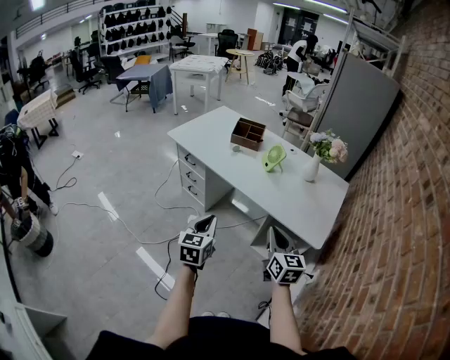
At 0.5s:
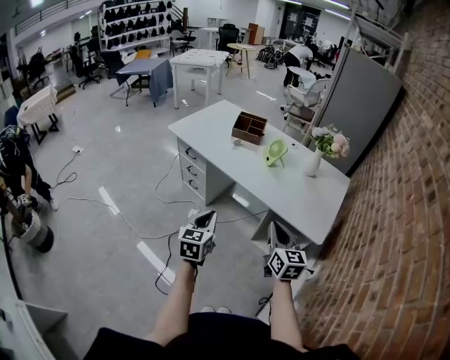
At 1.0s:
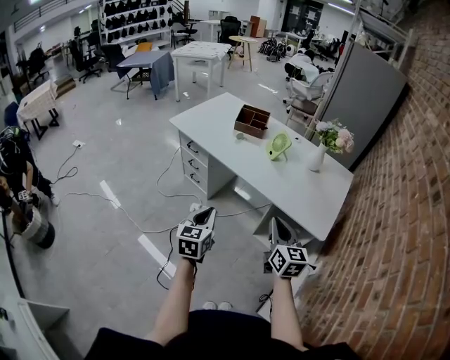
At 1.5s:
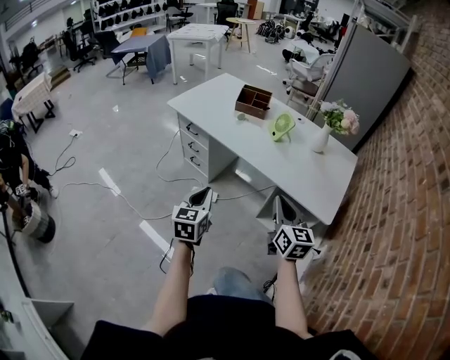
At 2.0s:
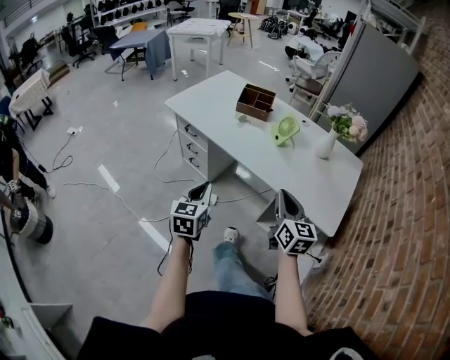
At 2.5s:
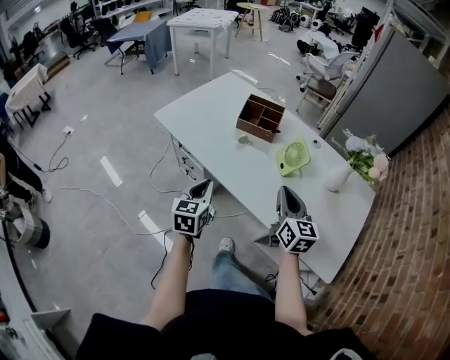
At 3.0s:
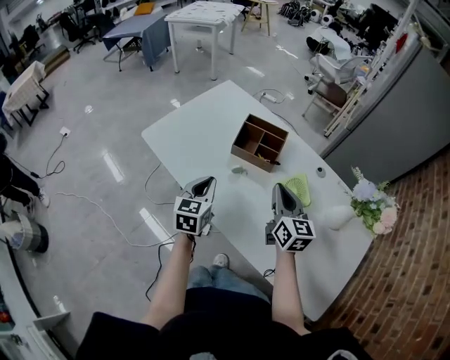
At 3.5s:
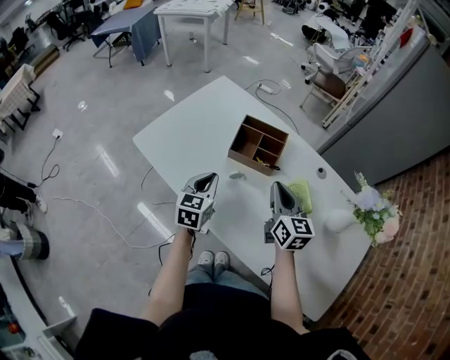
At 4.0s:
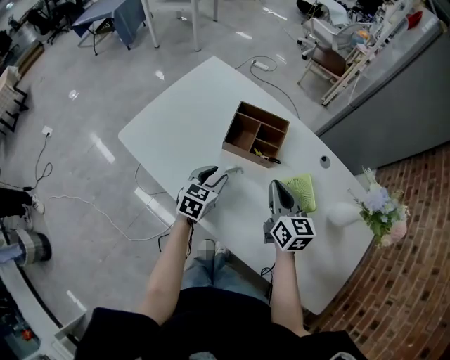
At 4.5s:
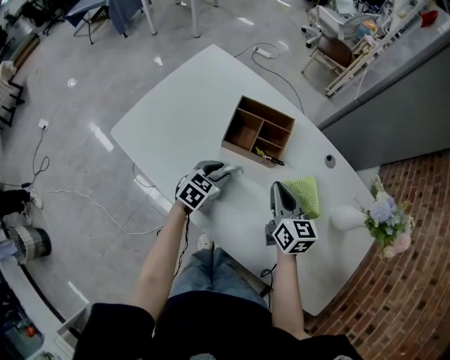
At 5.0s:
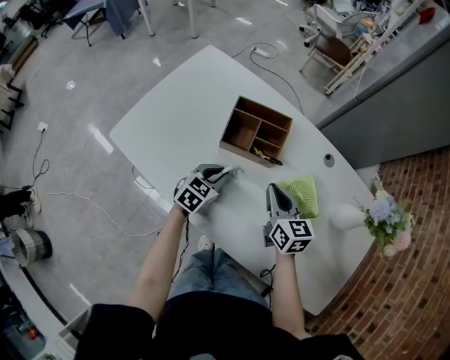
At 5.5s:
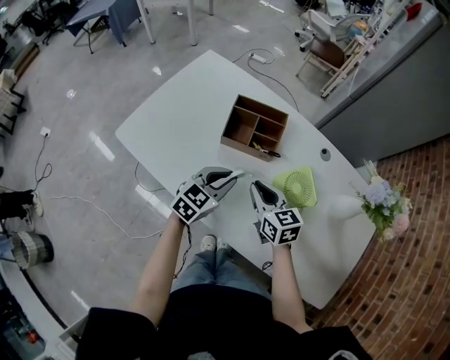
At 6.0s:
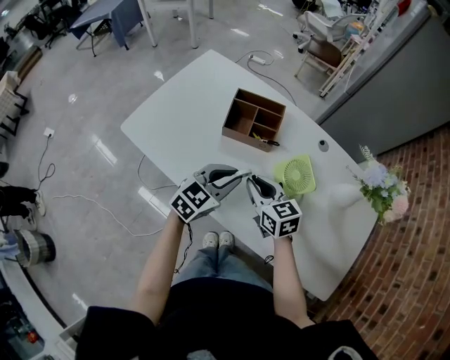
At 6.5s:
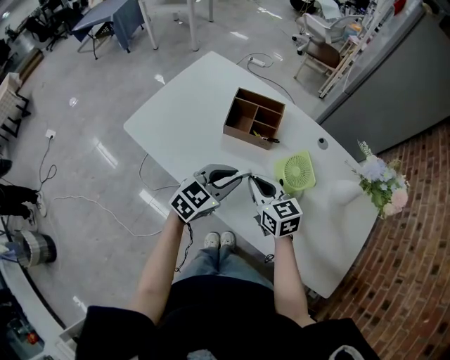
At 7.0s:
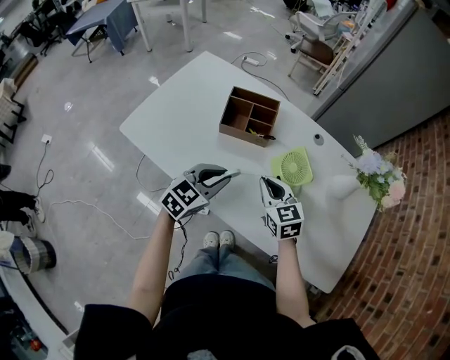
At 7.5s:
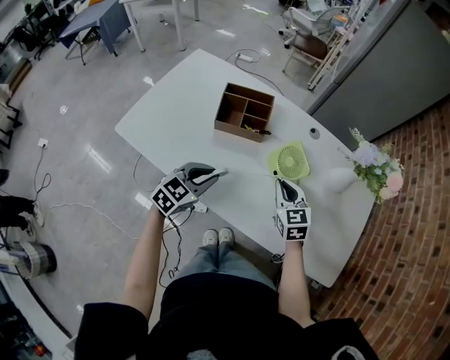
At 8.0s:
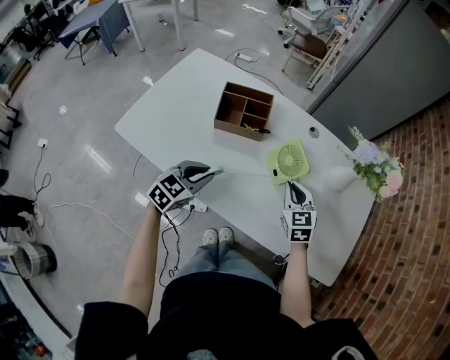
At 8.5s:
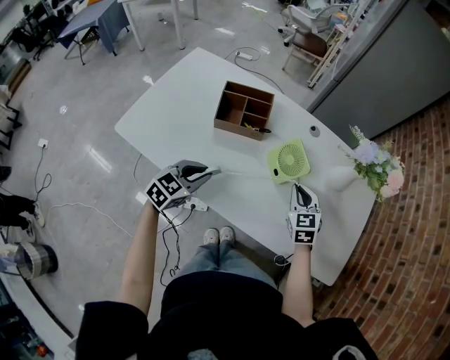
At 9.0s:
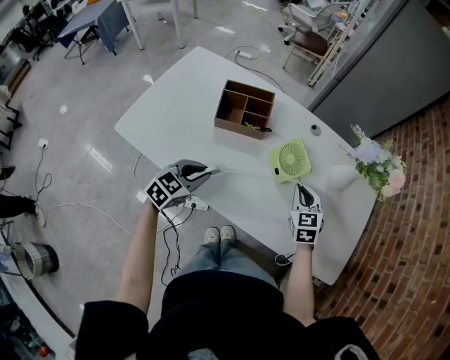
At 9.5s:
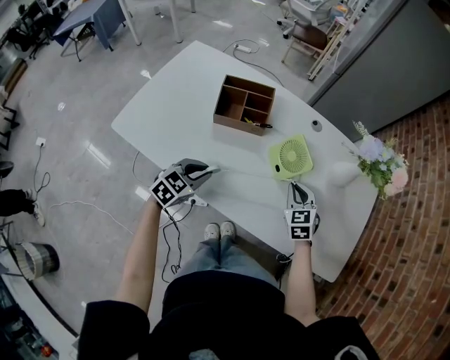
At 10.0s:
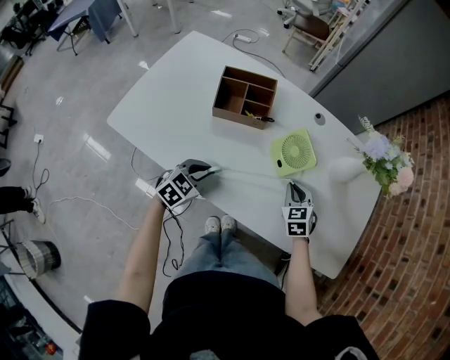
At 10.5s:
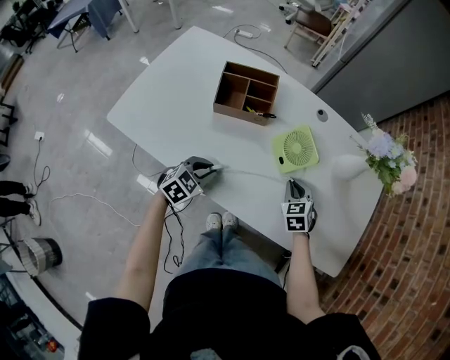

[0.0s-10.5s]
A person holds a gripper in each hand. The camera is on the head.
0.0s to 2.0s: The left gripper heads forward and to the left, covering roughly 10 cm. Meanwhile the right gripper shifts about 10 cm forward.
2.0s to 4.0s: The pair of grippers is taken forward, approximately 50 cm. The left gripper rotates some 20 degrees, and opens up.
4.0s to 6.5s: The right gripper moves backward and to the left, roughly 10 cm. The left gripper is displaced upward, backward and to the right by roughly 15 cm, and changes its angle by about 30 degrees.
6.5s to 8.5s: The right gripper shifts about 20 cm to the right, and turns by some 40 degrees; the left gripper heads to the left and downward, covering about 10 cm.
8.5s to 10.5s: The grippers both shift downward by about 10 cm.

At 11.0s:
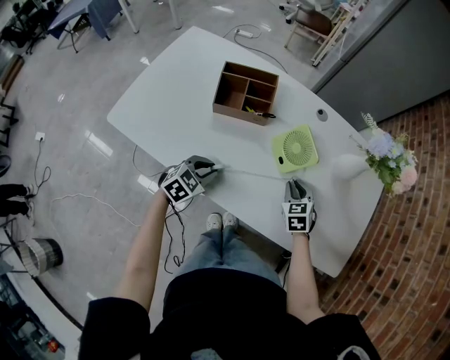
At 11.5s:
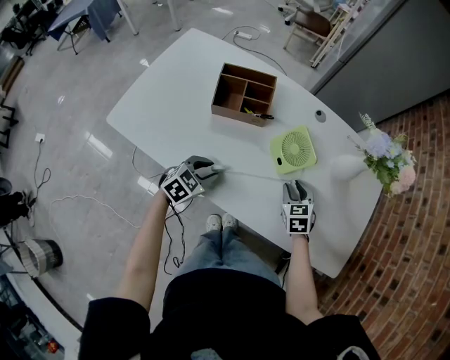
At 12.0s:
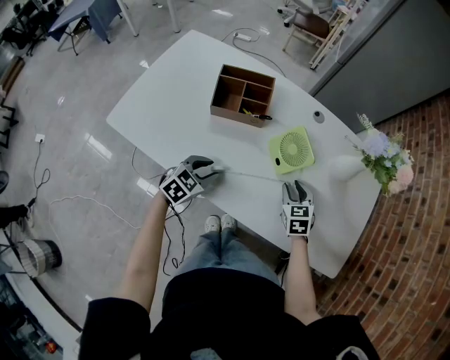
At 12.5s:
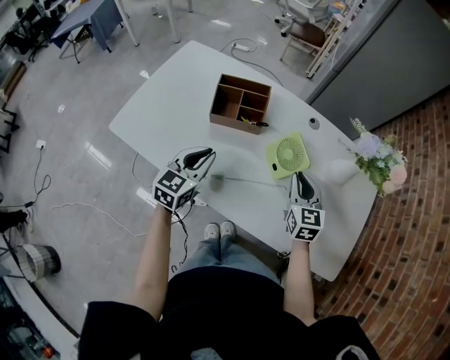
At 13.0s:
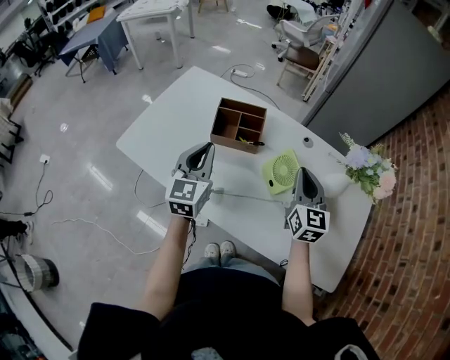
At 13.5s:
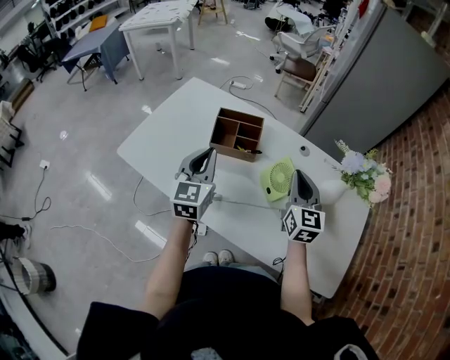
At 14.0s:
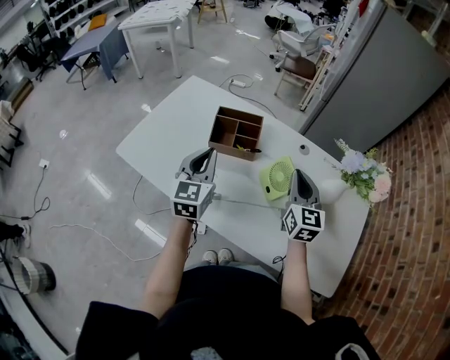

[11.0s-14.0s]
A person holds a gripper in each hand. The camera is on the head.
11.0s to 12.5s: Both grippers move upward, roughly 15 cm. The left gripper turns by some 30 degrees. Meanwhile the right gripper swivels about 30 degrees.
12.5s to 14.0s: The grippers both shift upward by roughly 10 cm. The left gripper rotates approximately 20 degrees.

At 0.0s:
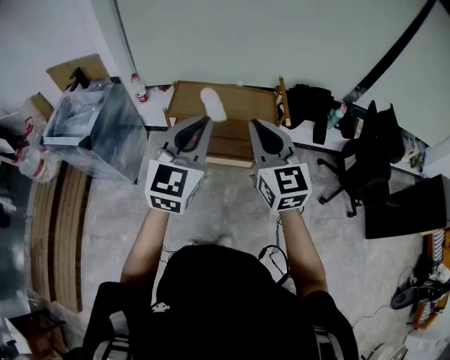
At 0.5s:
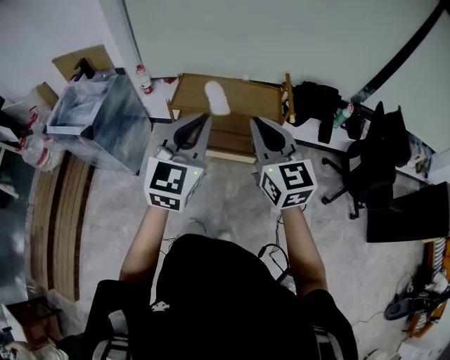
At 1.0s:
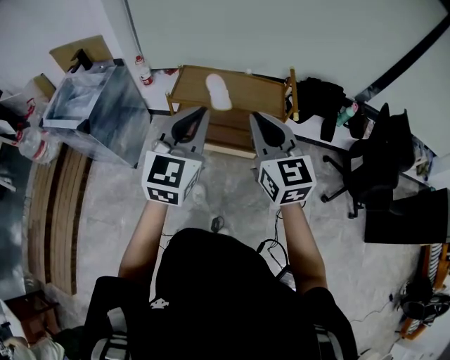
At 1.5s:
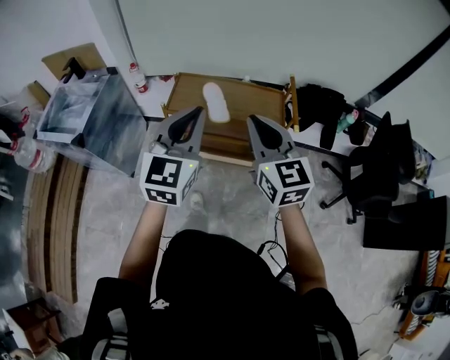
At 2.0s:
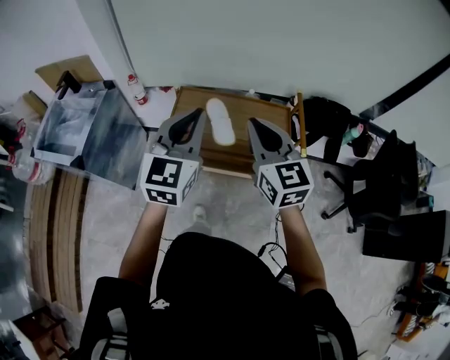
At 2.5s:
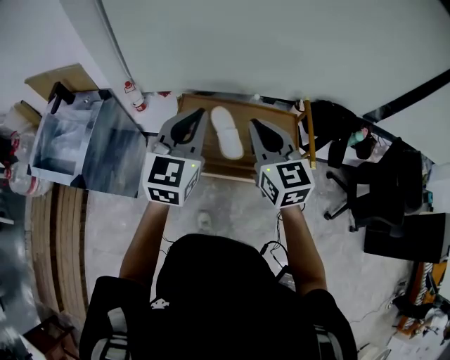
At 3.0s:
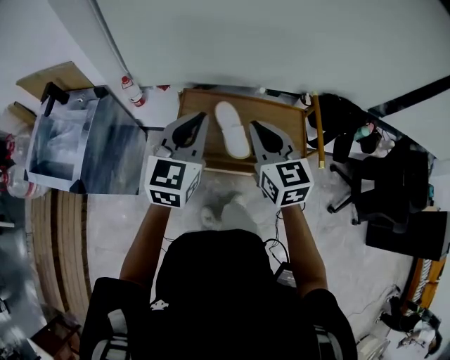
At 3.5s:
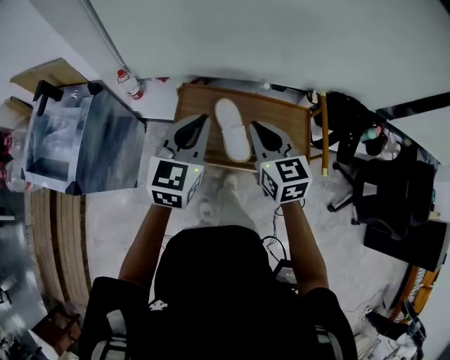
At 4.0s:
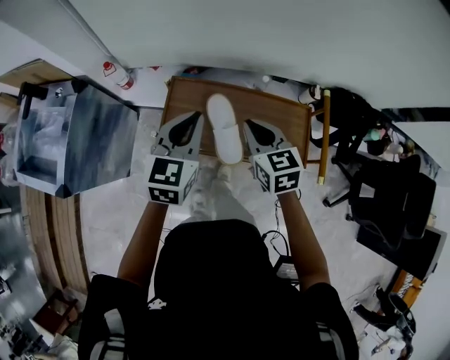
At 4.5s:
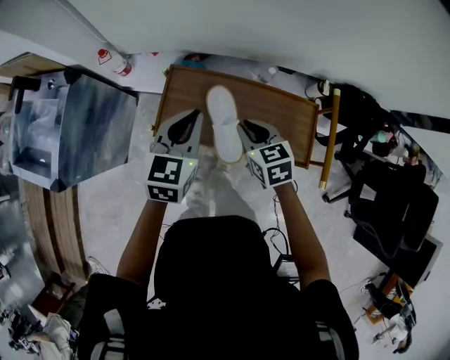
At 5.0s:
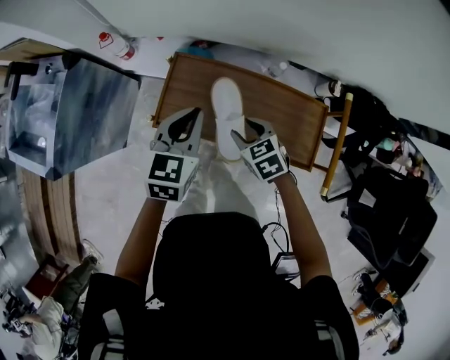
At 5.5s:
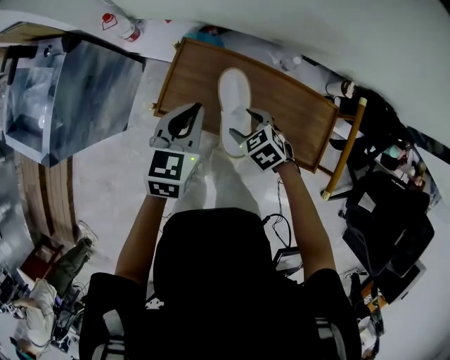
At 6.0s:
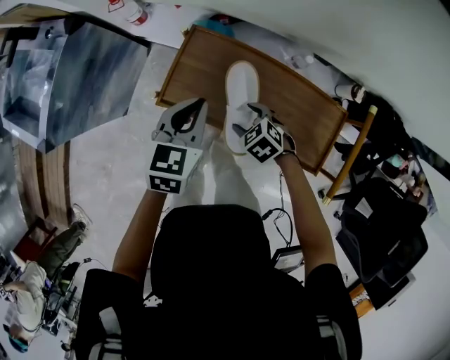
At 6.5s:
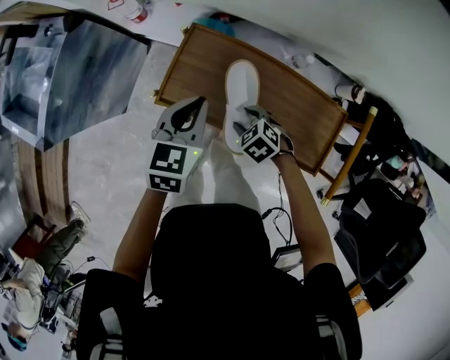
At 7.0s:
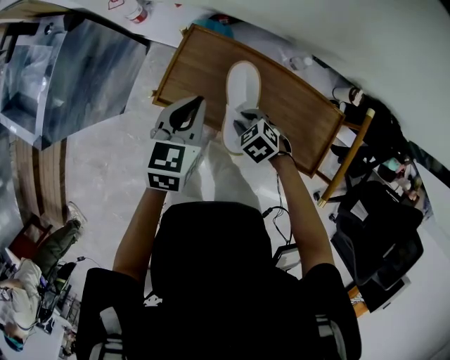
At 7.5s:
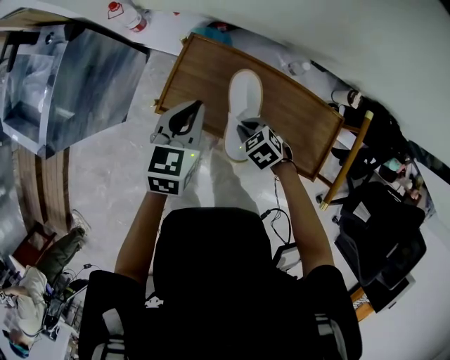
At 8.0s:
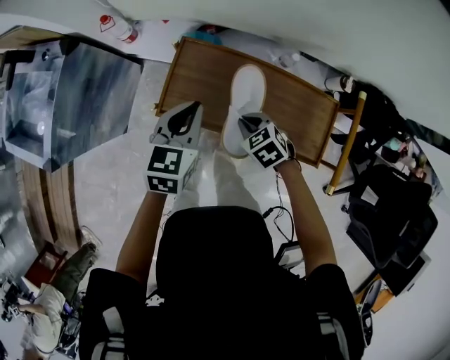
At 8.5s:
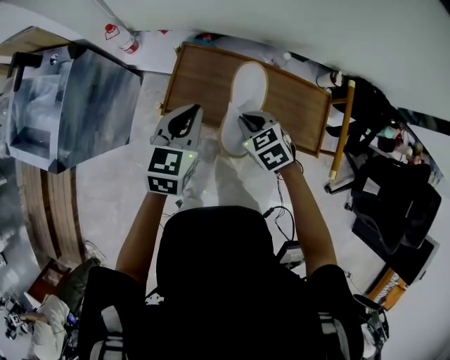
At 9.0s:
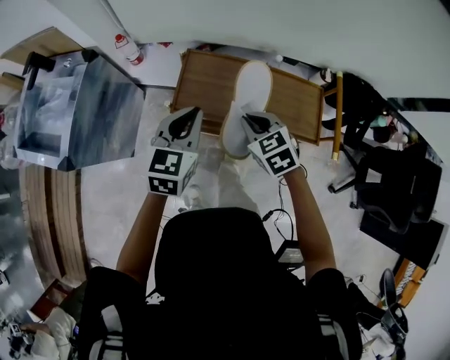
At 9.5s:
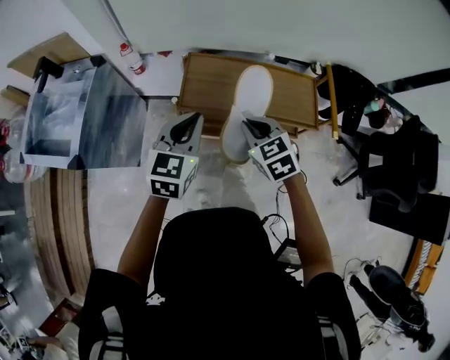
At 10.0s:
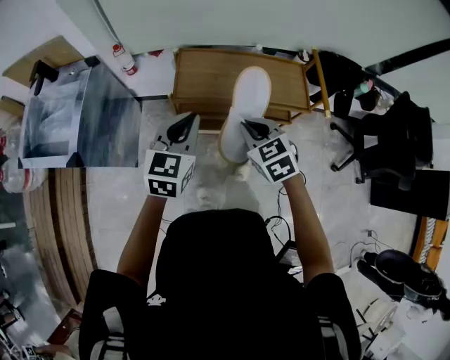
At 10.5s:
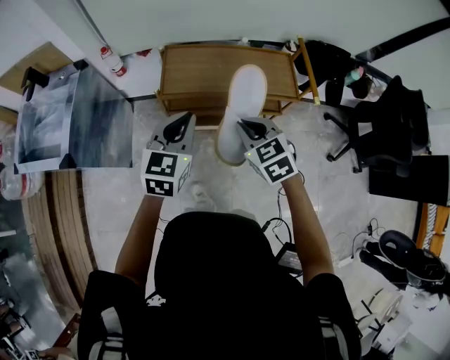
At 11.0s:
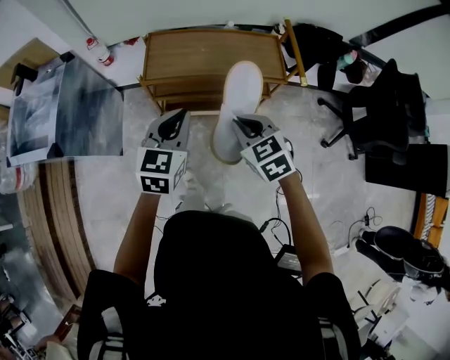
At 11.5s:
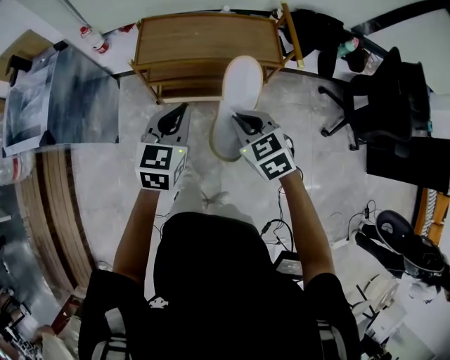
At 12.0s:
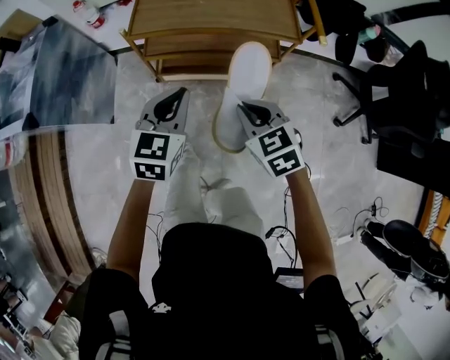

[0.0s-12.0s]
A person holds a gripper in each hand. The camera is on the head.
0.0s to 2.0s: The grippers both shift forward by some 25 cm.
2.0s to 4.0s: Both grippers travel together forward and downward, some 30 cm. The right gripper swivels approximately 30 degrees, while the left gripper rotates approximately 20 degrees.
4.0s to 6.0s: The left gripper travels downward by roughly 15 cm; the right gripper is displaced downward by roughly 25 cm, angles its fingers downward, by some 30 degrees, and opens up.
6.0s to 8.0s: The right gripper closes.
8.0s to 10.0s: Both grippers move backward, upward and to the left, some 30 cm. The right gripper swivels approximately 30 degrees; the left gripper swivels some 20 degrees.
10.0s to 12.0s: The right gripper moves backward, to the right and downward, roughly 25 cm. The left gripper shifts some 25 cm downward, to the right and backward.

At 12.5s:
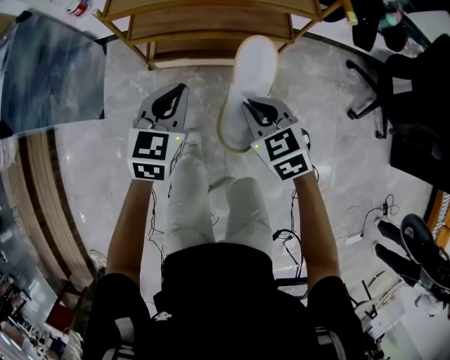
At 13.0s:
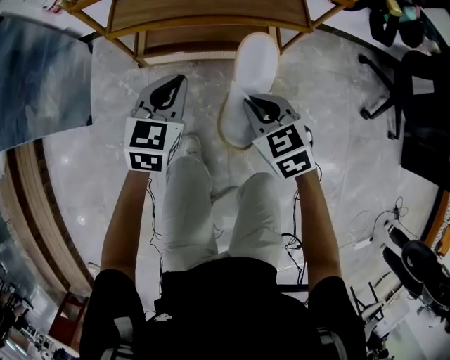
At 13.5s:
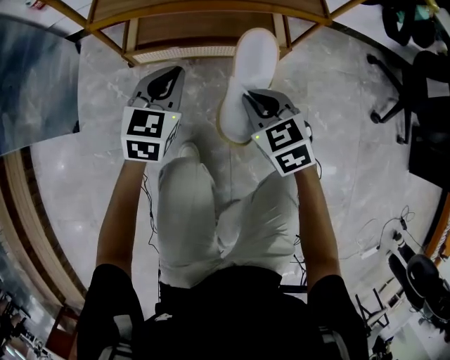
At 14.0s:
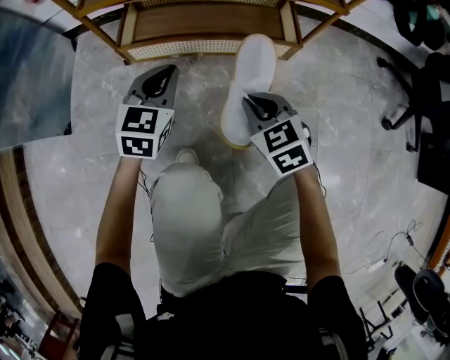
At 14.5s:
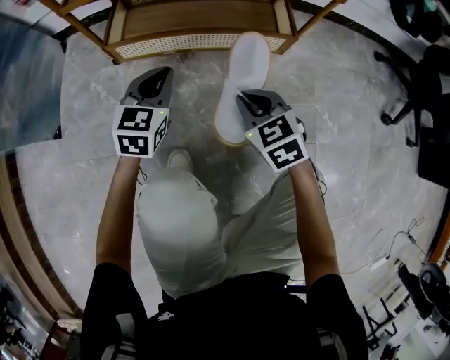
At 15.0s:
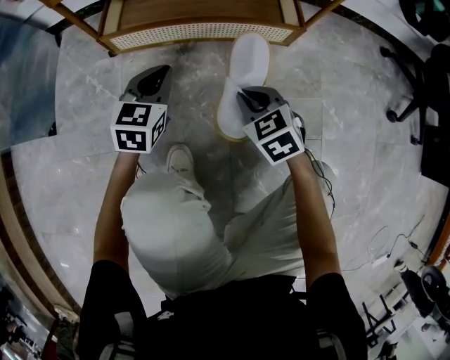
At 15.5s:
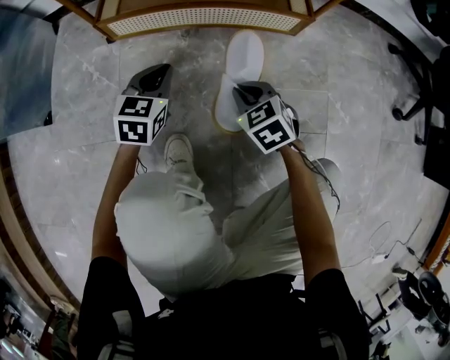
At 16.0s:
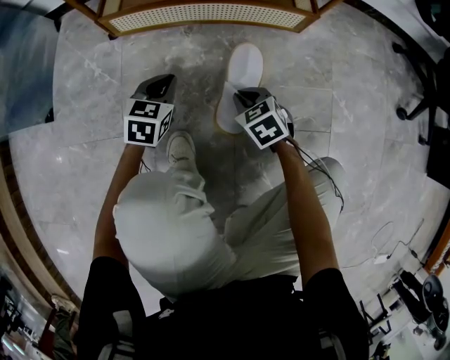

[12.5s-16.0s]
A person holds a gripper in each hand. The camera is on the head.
12.5s to 14.5s: Both grippers travel together downward, about 40 cm.
14.5s to 16.0s: Both grippers move downward, about 15 cm.
